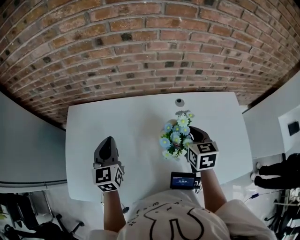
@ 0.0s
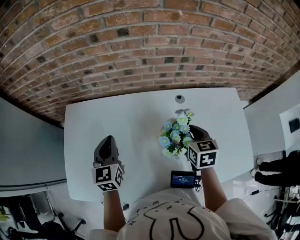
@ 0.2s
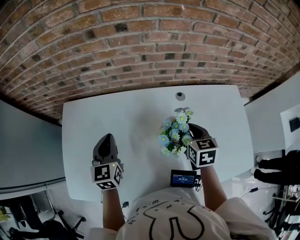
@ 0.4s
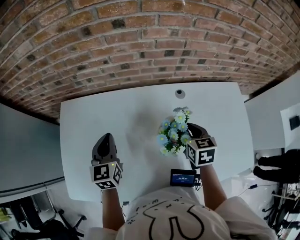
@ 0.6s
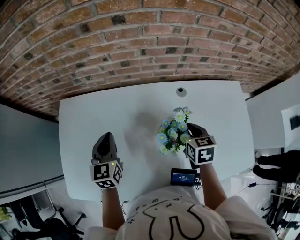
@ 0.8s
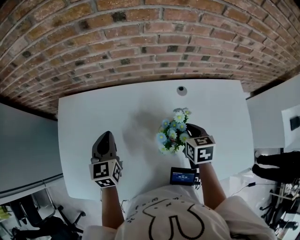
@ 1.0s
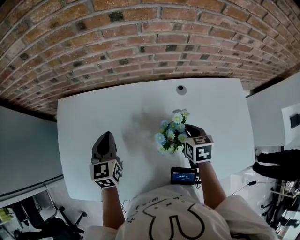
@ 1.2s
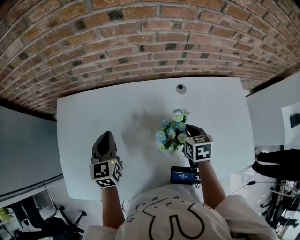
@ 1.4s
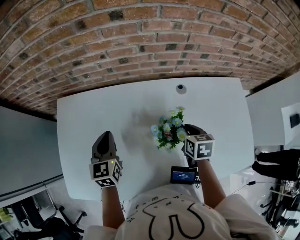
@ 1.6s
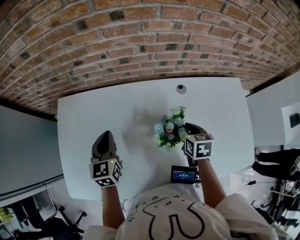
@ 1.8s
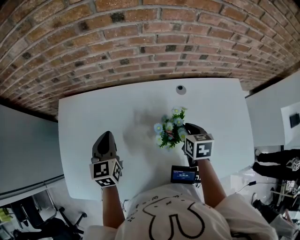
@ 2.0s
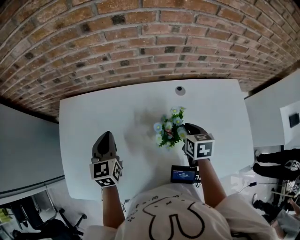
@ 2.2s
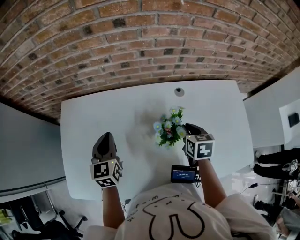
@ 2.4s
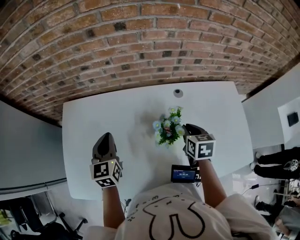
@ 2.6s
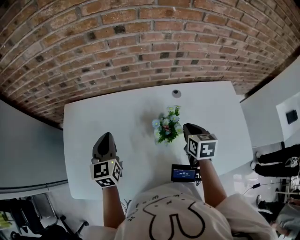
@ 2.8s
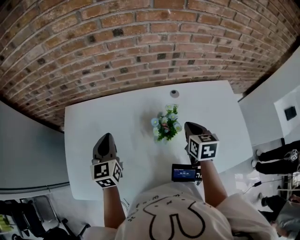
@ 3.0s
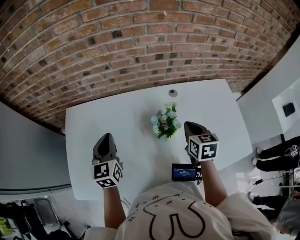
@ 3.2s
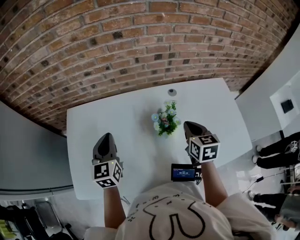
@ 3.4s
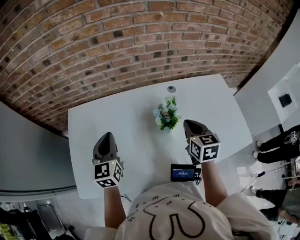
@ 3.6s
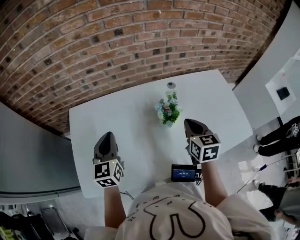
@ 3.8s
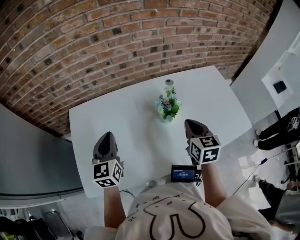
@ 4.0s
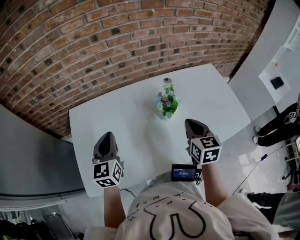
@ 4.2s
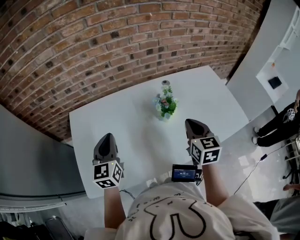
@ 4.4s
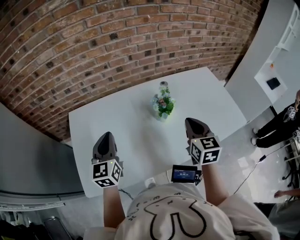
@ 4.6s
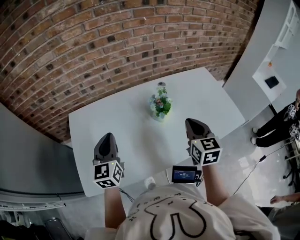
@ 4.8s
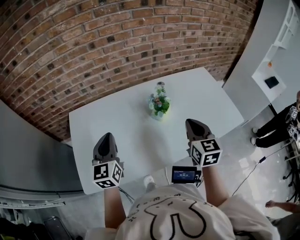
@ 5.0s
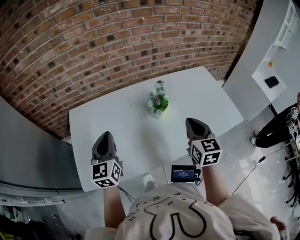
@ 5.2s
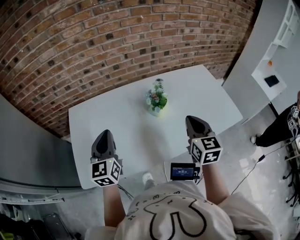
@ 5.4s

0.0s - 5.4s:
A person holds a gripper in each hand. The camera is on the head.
0.0s - 1.4s: The left gripper moves downward, some 5 cm; the right gripper heads downward, covering some 10 cm.
1.4s - 2.8s: The left gripper changes place by approximately 5 cm. The right gripper moves upward, roughly 5 cm.
2.8s - 4.0s: The right gripper moves backward, upward and to the left, some 15 cm. Meanwhile the left gripper is displaced backward by about 10 cm.
4.0s - 5.4s: The left gripper goes approximately 10 cm backward. The right gripper travels backward and upward by approximately 10 cm.

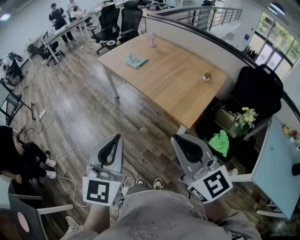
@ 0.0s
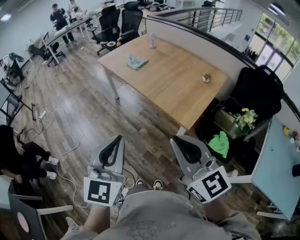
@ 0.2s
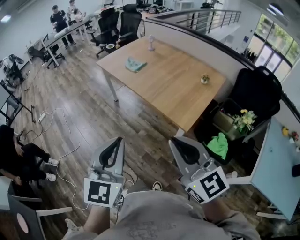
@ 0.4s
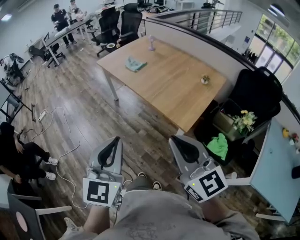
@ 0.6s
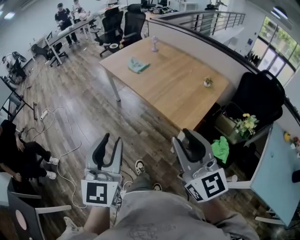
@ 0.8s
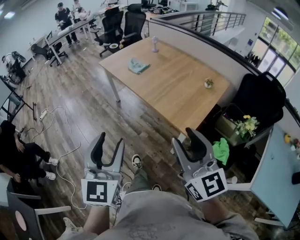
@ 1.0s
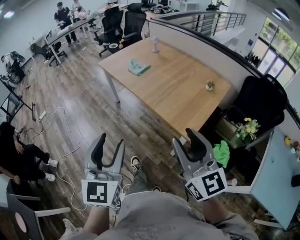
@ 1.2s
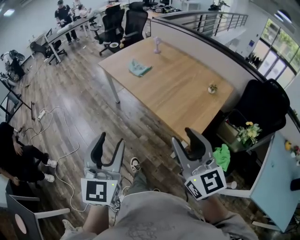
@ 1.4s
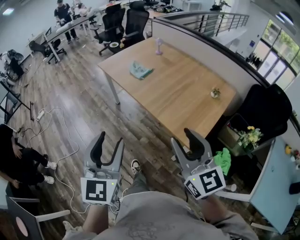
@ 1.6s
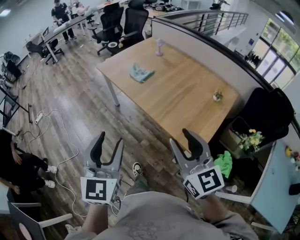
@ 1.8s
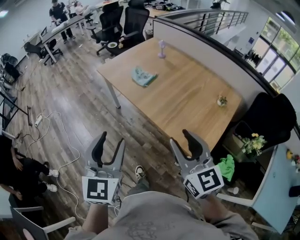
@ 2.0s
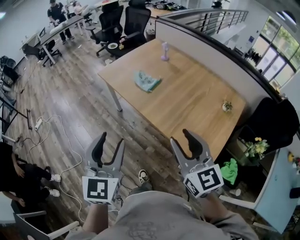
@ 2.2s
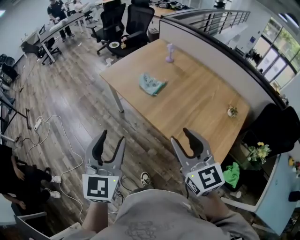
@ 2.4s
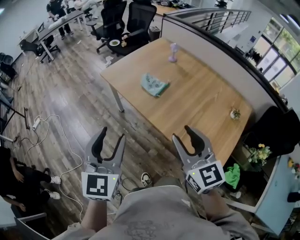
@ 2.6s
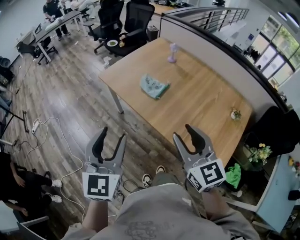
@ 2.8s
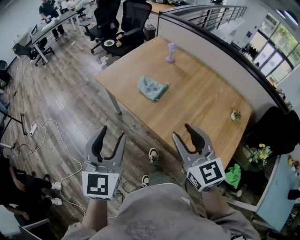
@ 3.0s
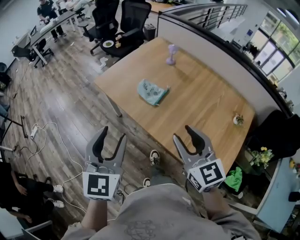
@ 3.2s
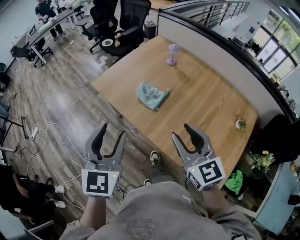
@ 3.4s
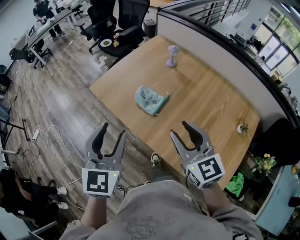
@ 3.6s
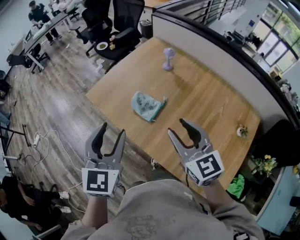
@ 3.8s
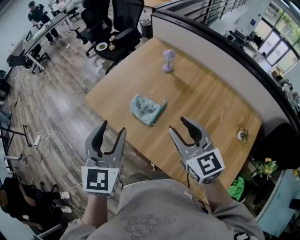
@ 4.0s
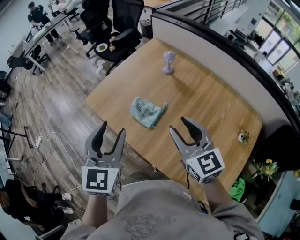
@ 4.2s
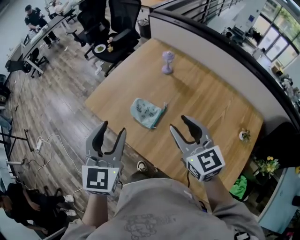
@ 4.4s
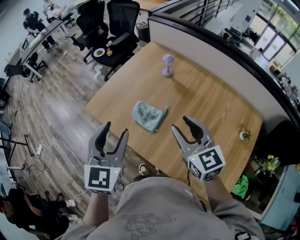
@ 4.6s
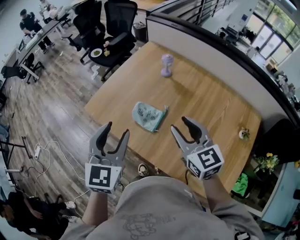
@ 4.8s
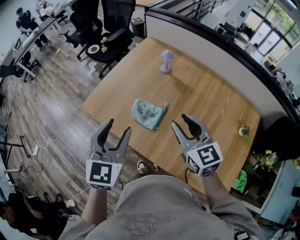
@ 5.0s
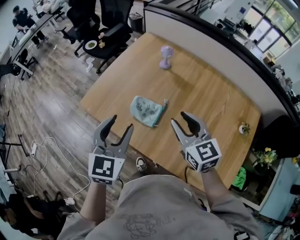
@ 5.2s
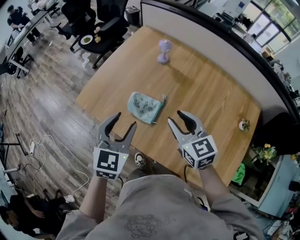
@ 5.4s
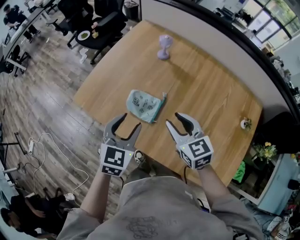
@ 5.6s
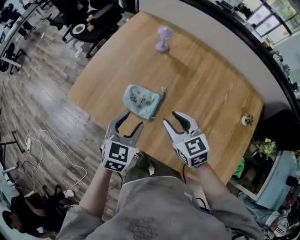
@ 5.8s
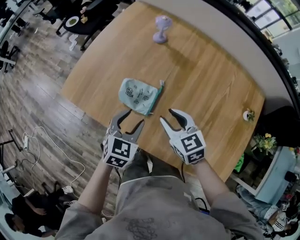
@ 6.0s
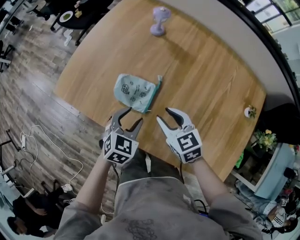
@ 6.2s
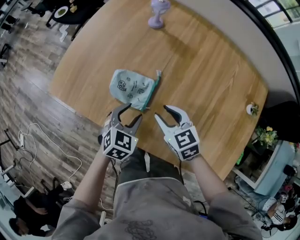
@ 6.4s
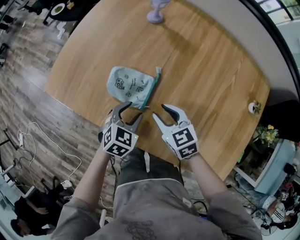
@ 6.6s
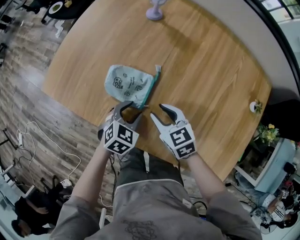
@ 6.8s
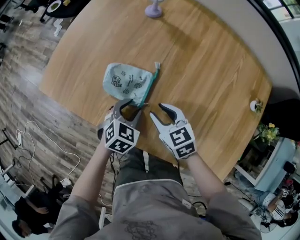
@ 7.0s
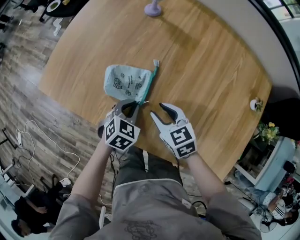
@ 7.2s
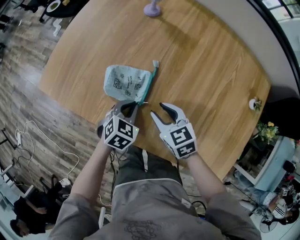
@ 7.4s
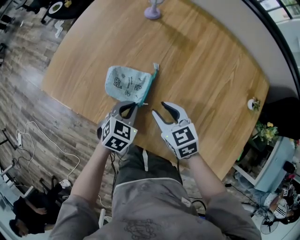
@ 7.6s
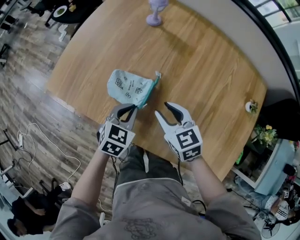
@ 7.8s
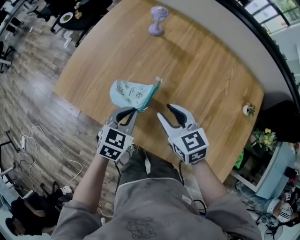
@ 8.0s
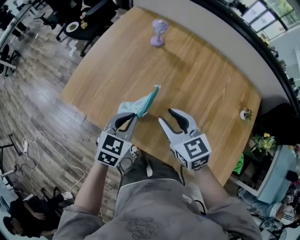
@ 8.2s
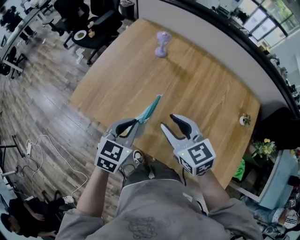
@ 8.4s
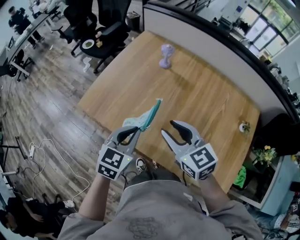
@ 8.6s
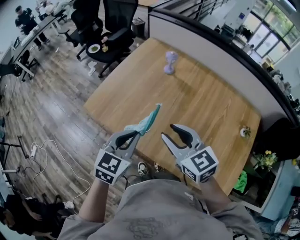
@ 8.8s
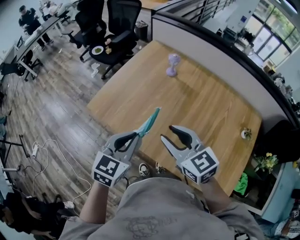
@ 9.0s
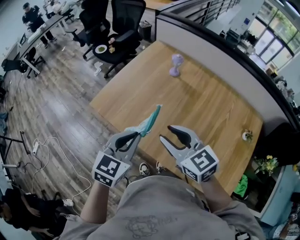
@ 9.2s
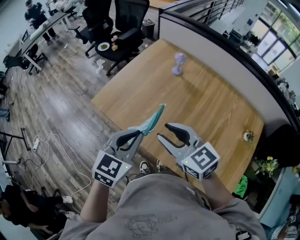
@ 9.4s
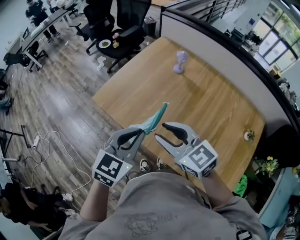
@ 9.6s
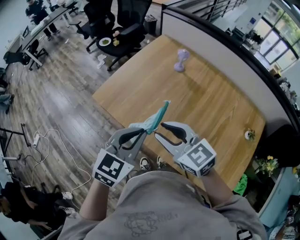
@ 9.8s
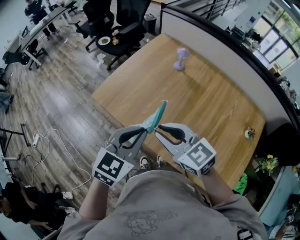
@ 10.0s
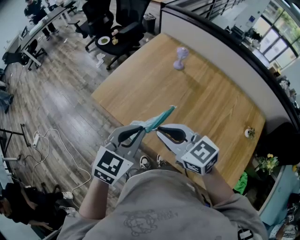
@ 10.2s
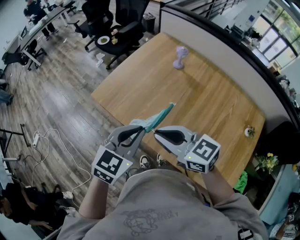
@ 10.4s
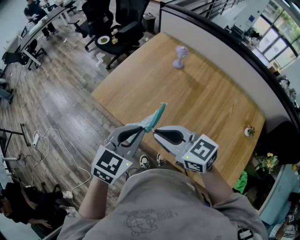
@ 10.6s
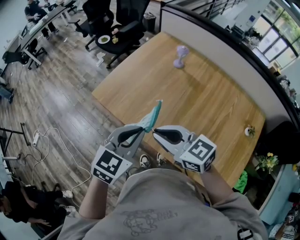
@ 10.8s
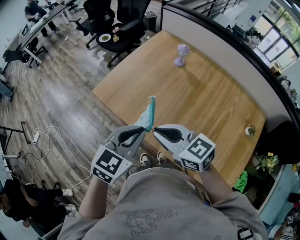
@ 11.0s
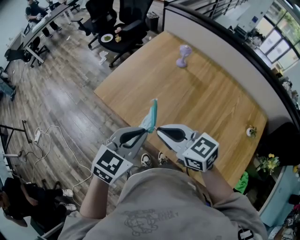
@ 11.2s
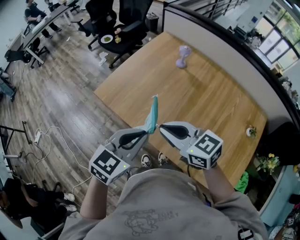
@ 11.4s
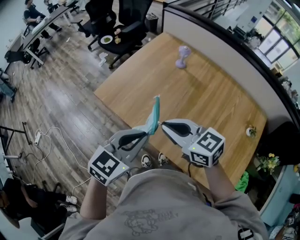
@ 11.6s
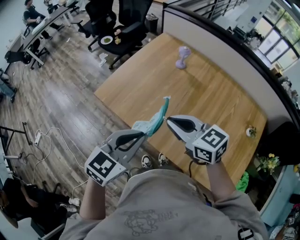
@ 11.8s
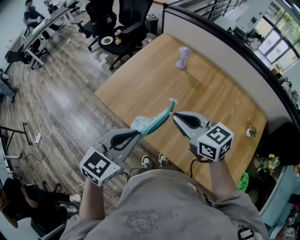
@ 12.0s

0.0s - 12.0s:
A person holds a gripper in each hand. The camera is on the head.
0.0s - 1.6s: Both grippers travel together forward, about 15 cm. The left gripper opens its fingers; the right gripper opens up.
1.6s - 3.0s: Both grippers travel together forward, about 35 cm.
3.0s - 4.4s: The two grippers go some 25 cm forward.
4.4s - 6.0s: The grippers both shift downward by about 25 cm. The left gripper swivels some 40 degrees. Meanwhile the right gripper swivels roughly 20 degrees.
6.0s - 7.6s: The two grippers go some 10 cm downward. The left gripper closes.
7.6s - 9.0s: Both grippers travel together upward, approximately 30 cm. The left gripper swivels about 30 degrees, while the right gripper rotates about 30 degrees.
9.0s - 10.4s: The right gripper goes approximately 5 cm to the left, rotates approximately 20 degrees, and closes its fingers.
10.4s - 12.0s: The right gripper shifts about 5 cm to the right.

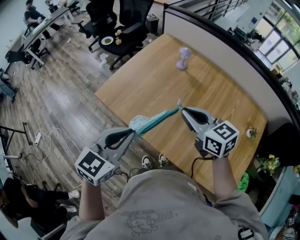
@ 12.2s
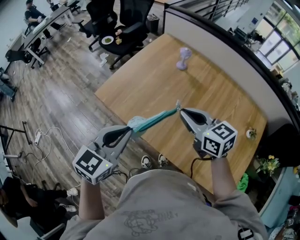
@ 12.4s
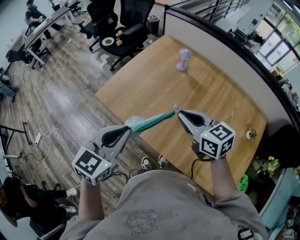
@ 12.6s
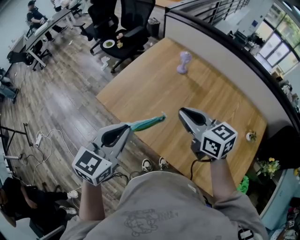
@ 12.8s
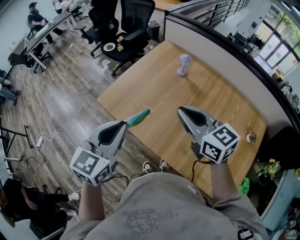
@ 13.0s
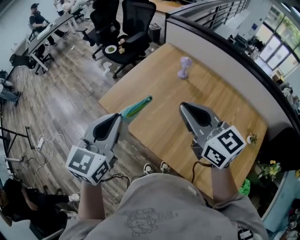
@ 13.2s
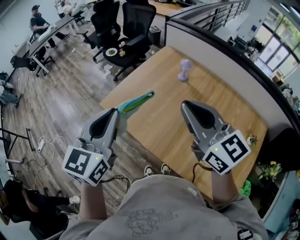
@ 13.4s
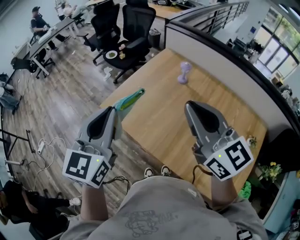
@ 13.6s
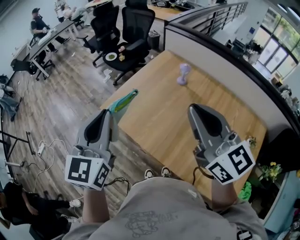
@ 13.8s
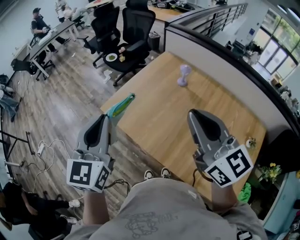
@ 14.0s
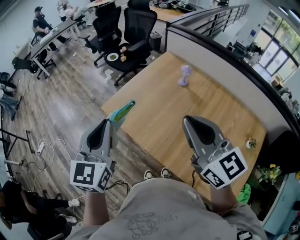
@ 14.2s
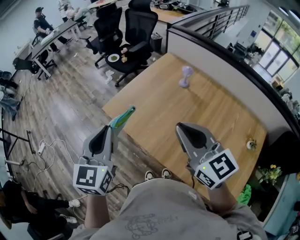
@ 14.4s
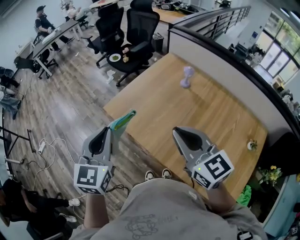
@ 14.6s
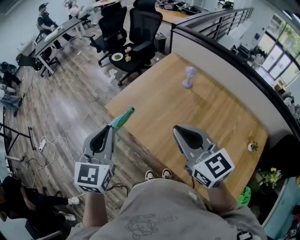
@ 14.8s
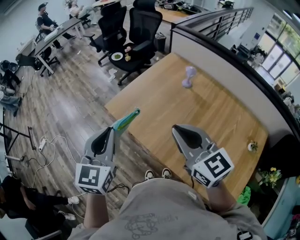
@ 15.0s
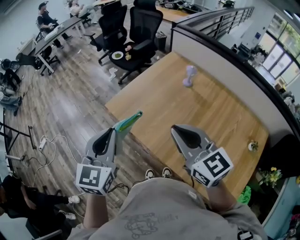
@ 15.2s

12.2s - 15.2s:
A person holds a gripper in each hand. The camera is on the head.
12.2s - 13.8s: The right gripper is displaced upward by some 20 cm, and changes its angle by some 30 degrees; the left gripper travels upward and to the left by about 15 cm, and rotates approximately 40 degrees.
13.8s - 15.2s: The left gripper shifts some 5 cm downward. The right gripper moves downward and to the left, roughly 10 cm.

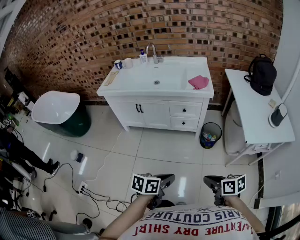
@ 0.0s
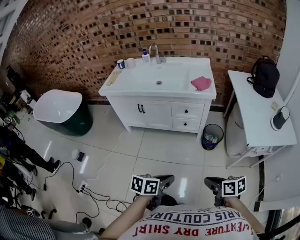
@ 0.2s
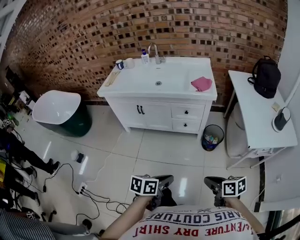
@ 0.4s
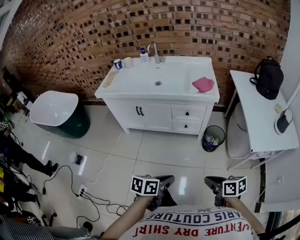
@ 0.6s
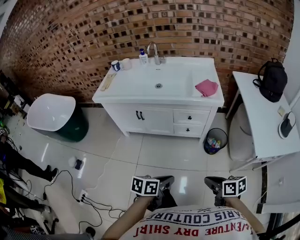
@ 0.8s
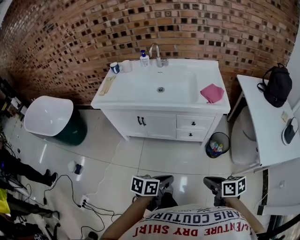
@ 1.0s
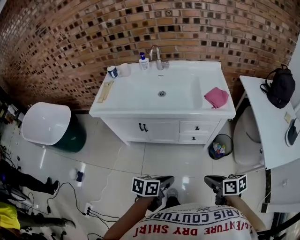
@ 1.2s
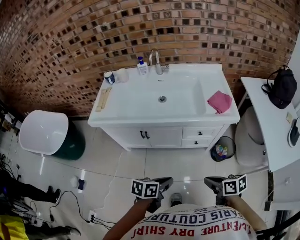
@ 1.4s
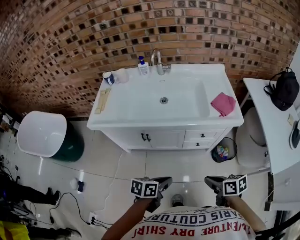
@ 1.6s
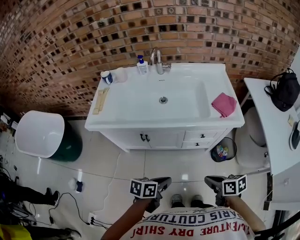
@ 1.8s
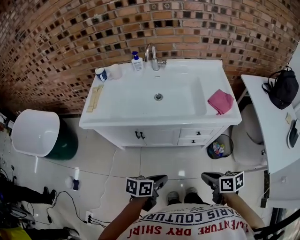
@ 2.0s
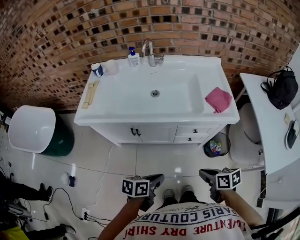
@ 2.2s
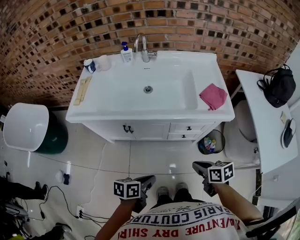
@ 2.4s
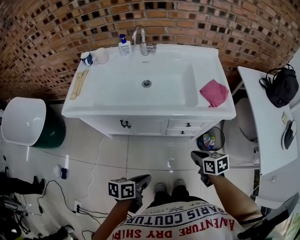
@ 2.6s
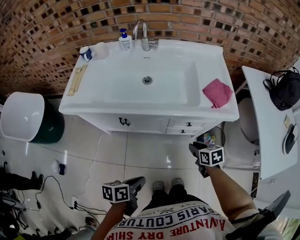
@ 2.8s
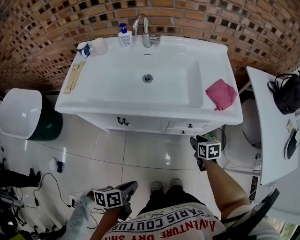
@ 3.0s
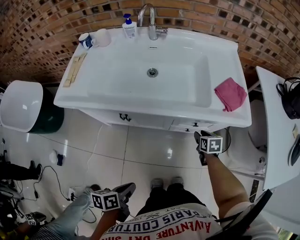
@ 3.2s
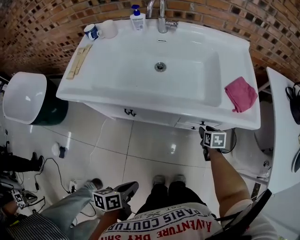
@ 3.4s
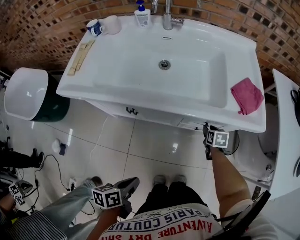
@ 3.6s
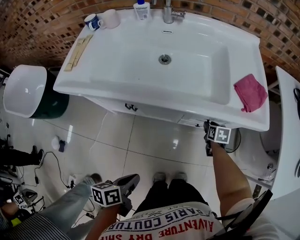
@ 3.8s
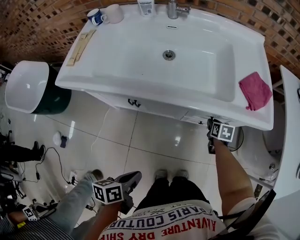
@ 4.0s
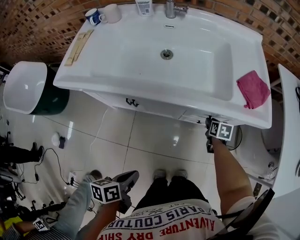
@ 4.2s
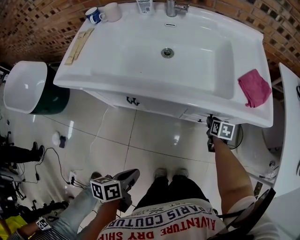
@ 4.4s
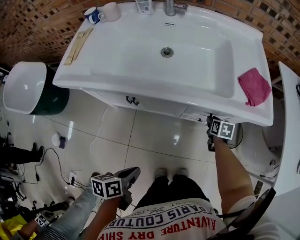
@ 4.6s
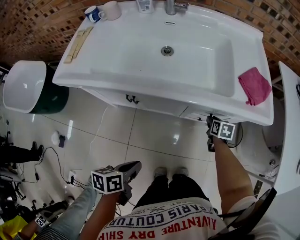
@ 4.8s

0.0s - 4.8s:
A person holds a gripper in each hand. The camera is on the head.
0.0s - 1.6s: The grippers both shift forward and to the left by roughly 40 cm.
1.6s - 3.2s: The left gripper is displaced downward and to the left by about 10 cm, and changes its angle by about 30 degrees, while the right gripper moves forward and downward, approximately 35 cm, changes its angle by some 30 degrees, and opens.
3.2s - 4.8s: The right gripper heads downward, covering about 10 cm. The left gripper shifts roughly 5 cm forward.
